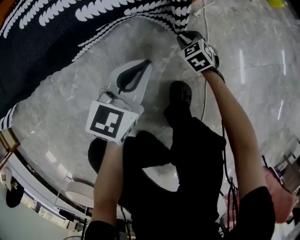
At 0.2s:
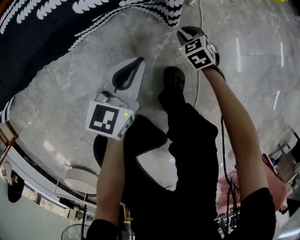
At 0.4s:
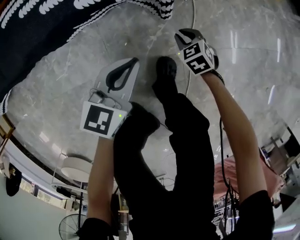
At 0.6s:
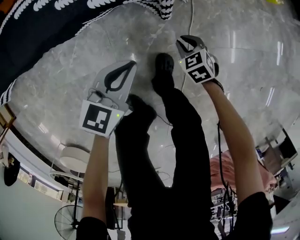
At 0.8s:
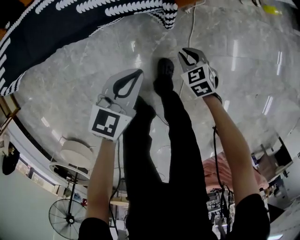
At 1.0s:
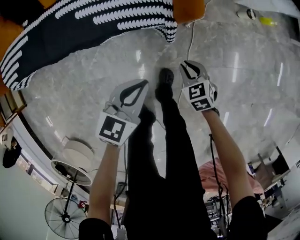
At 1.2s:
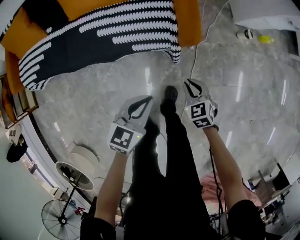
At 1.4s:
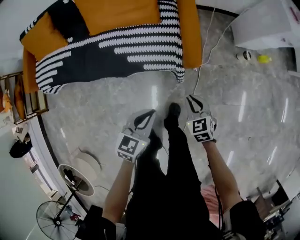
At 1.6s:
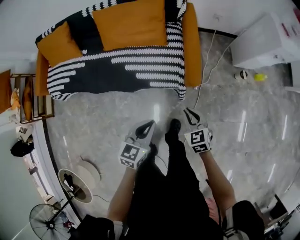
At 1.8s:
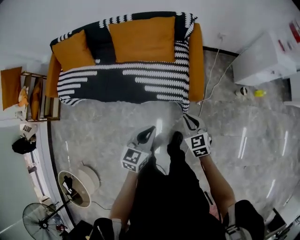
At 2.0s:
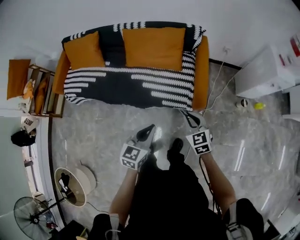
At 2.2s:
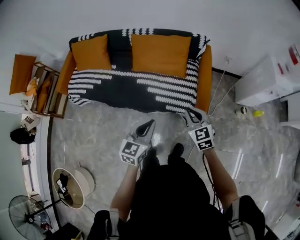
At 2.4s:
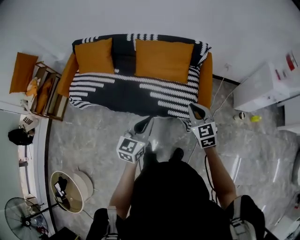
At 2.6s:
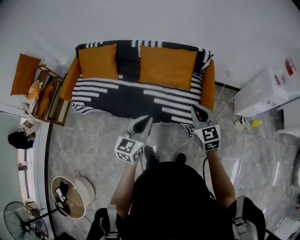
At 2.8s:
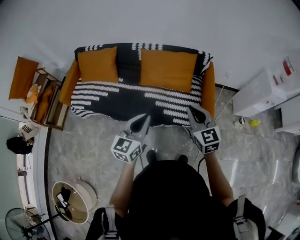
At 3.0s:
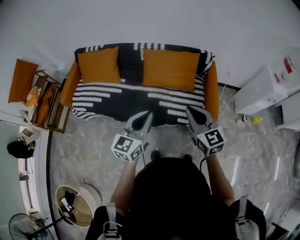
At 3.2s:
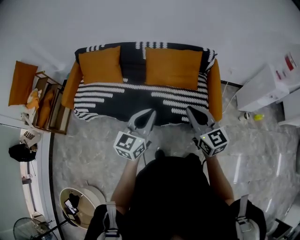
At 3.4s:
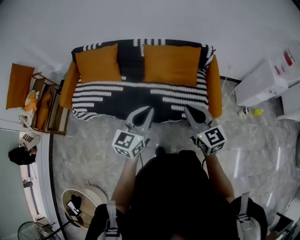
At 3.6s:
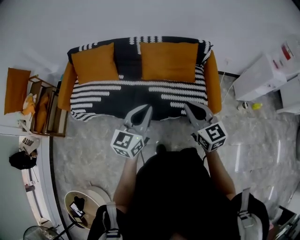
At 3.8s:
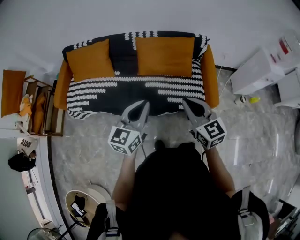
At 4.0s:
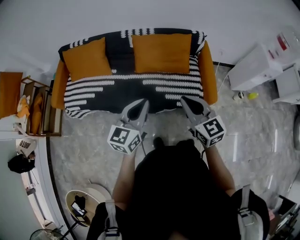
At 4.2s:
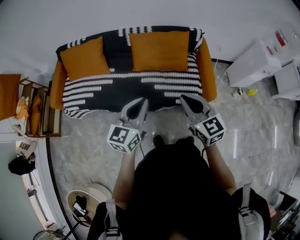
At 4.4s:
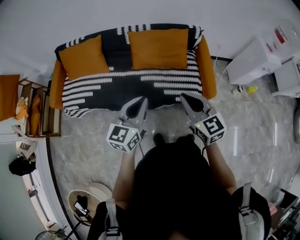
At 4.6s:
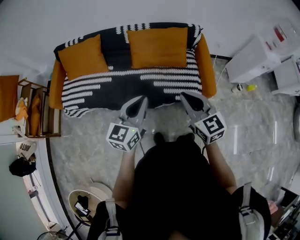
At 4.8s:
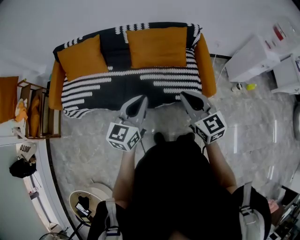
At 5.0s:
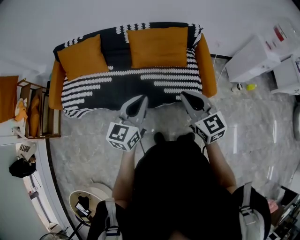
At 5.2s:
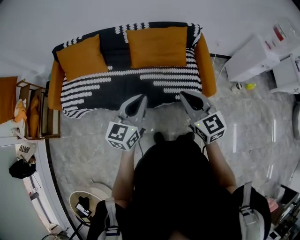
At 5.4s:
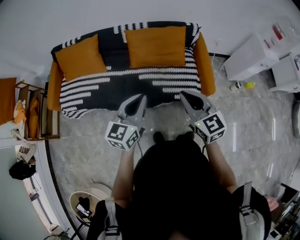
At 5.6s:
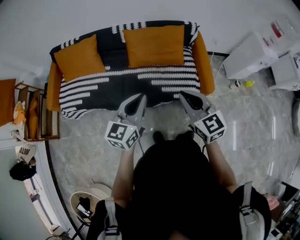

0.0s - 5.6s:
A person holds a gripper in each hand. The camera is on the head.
0.0s - 1.4s: The two grippers go some 50 cm upward.
1.4s - 2.8s: The grippers both shift upward and to the left by some 40 cm. The left gripper changes its angle by roughly 30 degrees. The right gripper swivels roughly 30 degrees.
2.8s - 4.2s: The two grippers go roughly 10 cm to the left.
4.2s - 5.6s: Both grippers stay about where they are.

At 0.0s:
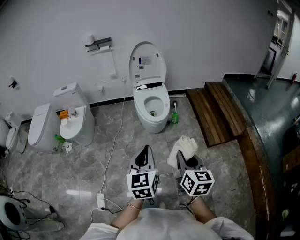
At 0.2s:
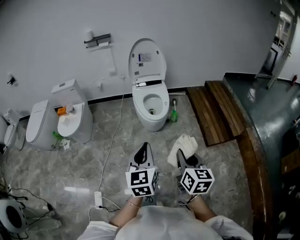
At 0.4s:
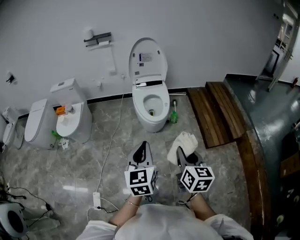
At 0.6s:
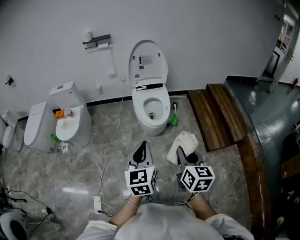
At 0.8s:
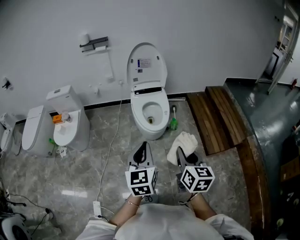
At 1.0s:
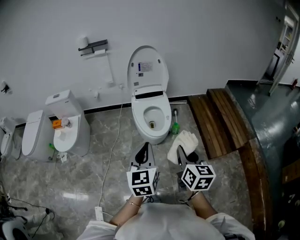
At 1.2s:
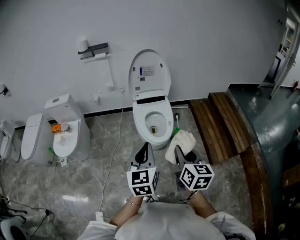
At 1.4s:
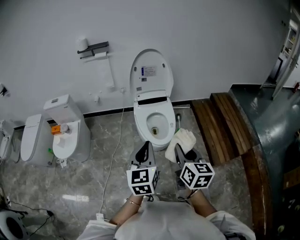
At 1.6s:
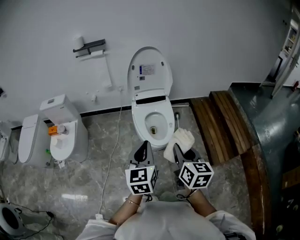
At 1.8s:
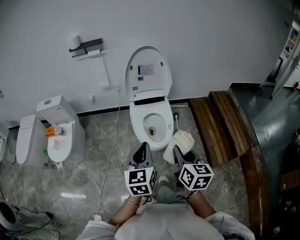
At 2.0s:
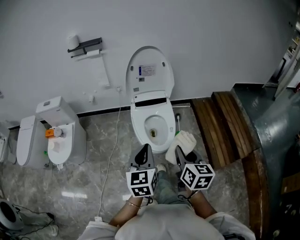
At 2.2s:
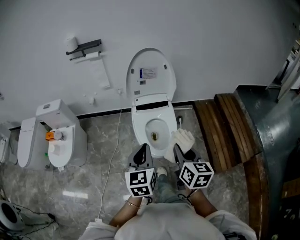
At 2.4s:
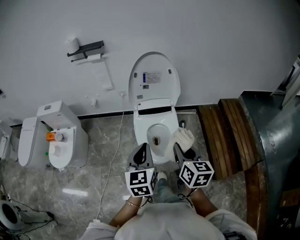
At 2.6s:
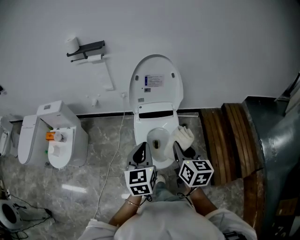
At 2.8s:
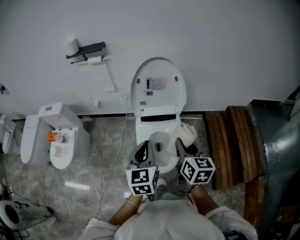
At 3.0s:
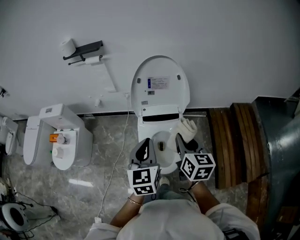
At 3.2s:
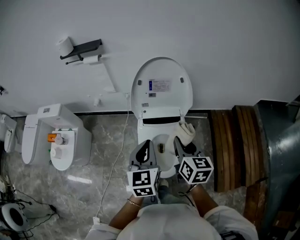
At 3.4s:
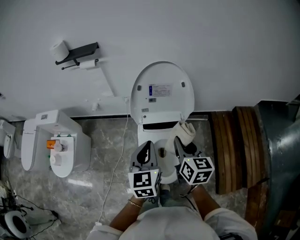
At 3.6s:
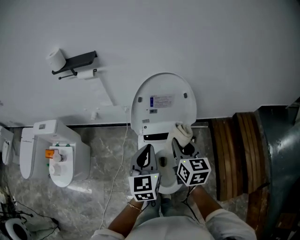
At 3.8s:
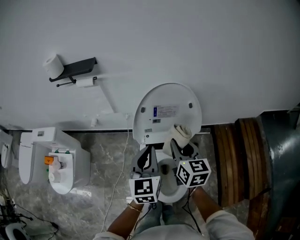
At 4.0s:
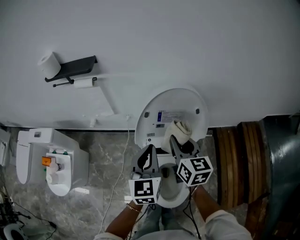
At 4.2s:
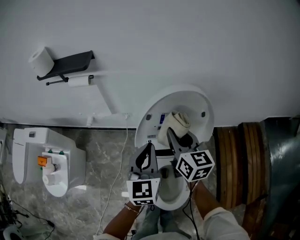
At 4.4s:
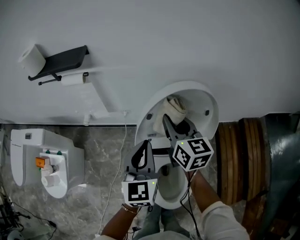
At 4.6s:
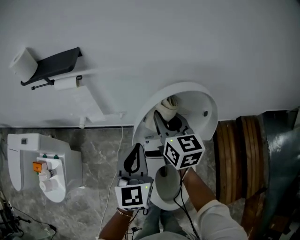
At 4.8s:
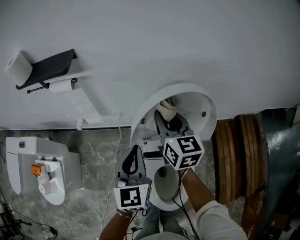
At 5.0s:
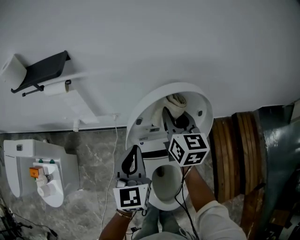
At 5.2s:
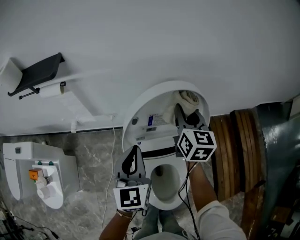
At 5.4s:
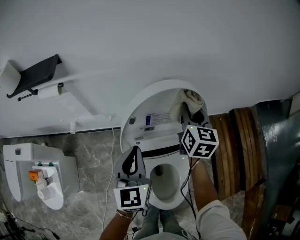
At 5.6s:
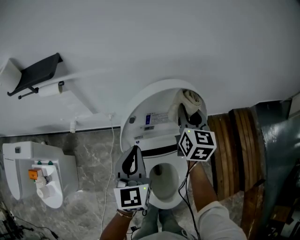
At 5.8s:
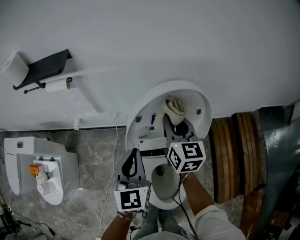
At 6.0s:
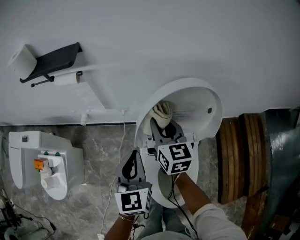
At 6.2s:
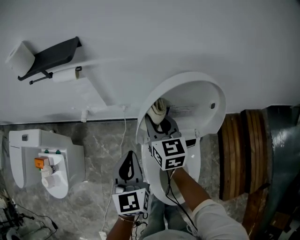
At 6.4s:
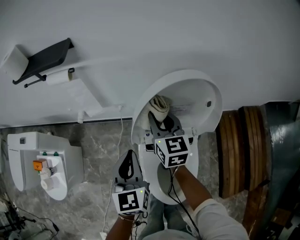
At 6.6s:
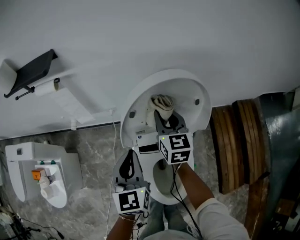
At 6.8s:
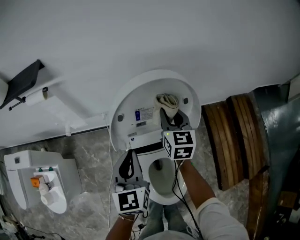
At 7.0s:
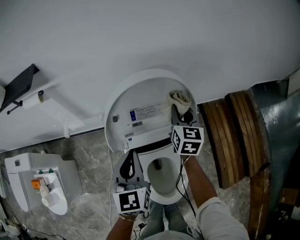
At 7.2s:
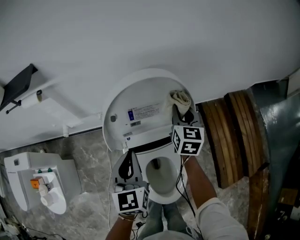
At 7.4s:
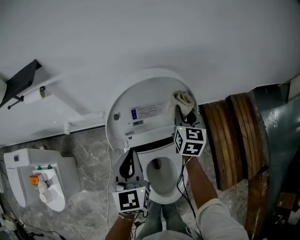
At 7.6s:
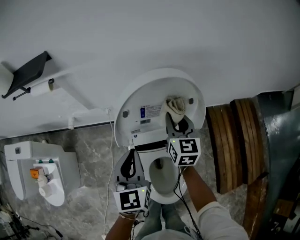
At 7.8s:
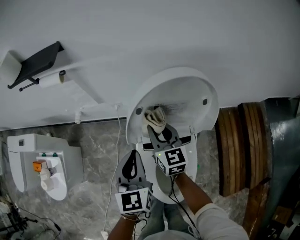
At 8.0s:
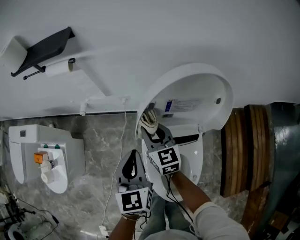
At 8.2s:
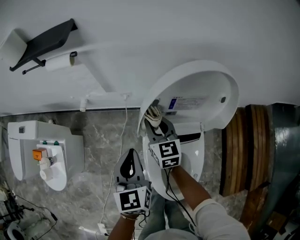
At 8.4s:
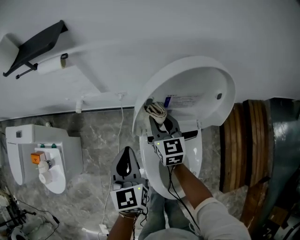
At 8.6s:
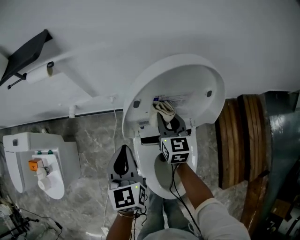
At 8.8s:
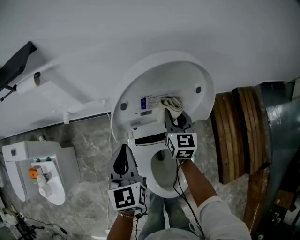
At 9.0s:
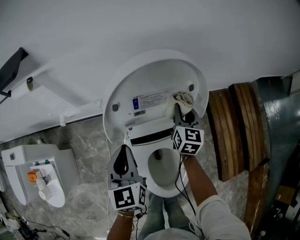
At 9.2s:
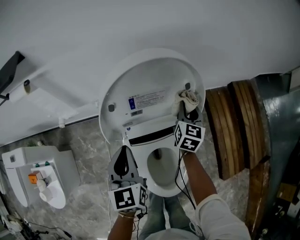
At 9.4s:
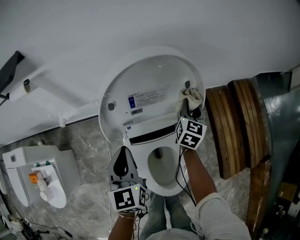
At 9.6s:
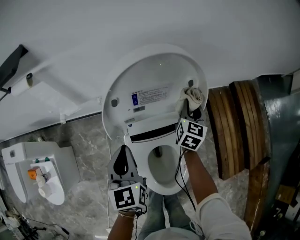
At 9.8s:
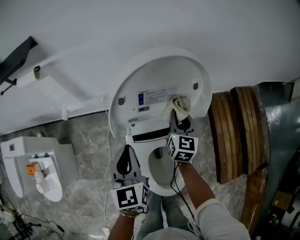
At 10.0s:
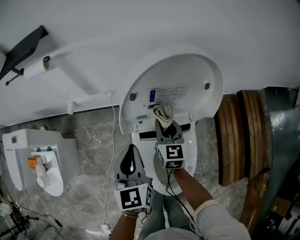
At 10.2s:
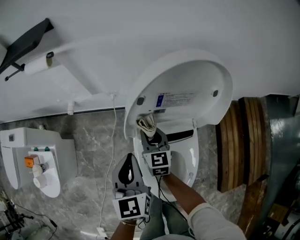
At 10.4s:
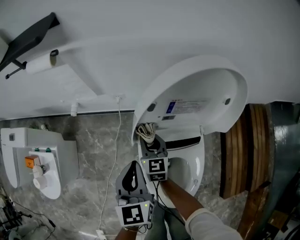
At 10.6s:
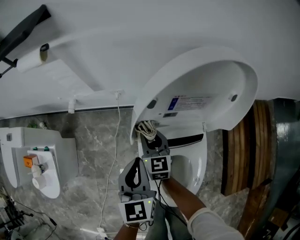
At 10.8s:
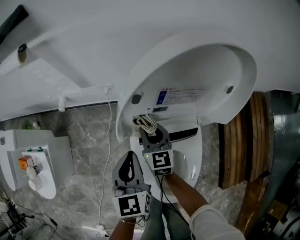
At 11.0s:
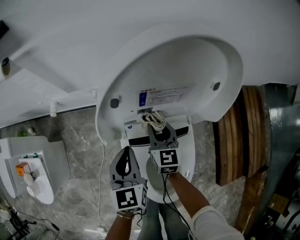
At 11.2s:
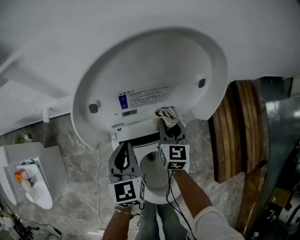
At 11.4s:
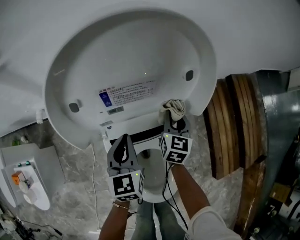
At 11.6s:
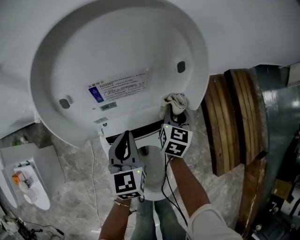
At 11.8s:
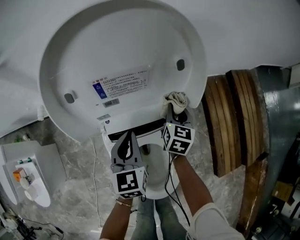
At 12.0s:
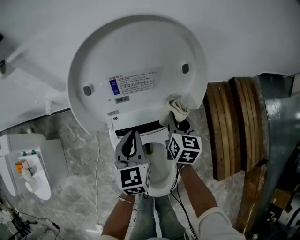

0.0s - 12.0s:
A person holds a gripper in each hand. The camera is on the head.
0.0s - 1.6s: The grippers both shift forward by some 30 cm.
1.6s - 3.0s: The two grippers go approximately 35 cm forward.
3.0s - 4.4s: Both grippers travel together forward, about 35 cm.
4.4s - 6.0s: The left gripper changes place by approximately 5 cm, while the right gripper moves some 15 cm to the right and comes back.
6.0s - 7.6s: The left gripper is displaced to the right by some 5 cm. The right gripper shifts approximately 15 cm to the right.
7.6s - 9.0s: The left gripper moves about 10 cm to the left and comes back; the right gripper heads downward, covering approximately 10 cm, and reaches roughly 20 cm to the left, then returns.
9.0s - 10.4s: The left gripper heads to the left, covering some 5 cm. Meanwhile the right gripper goes some 25 cm to the left, and turns by some 30 degrees.
10.4s - 12.0s: The right gripper ends up some 30 cm from where it was, and turns by roughly 30 degrees. Meanwhile the left gripper shifts by approximately 20 cm.

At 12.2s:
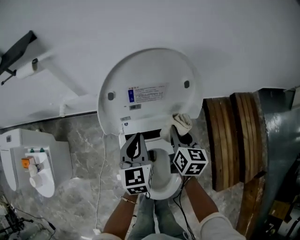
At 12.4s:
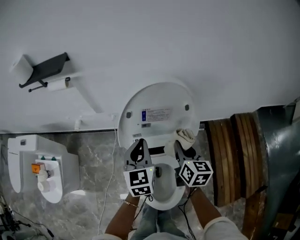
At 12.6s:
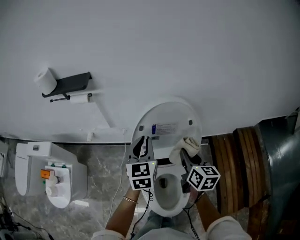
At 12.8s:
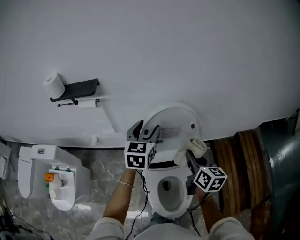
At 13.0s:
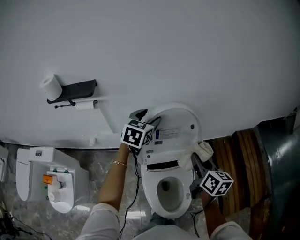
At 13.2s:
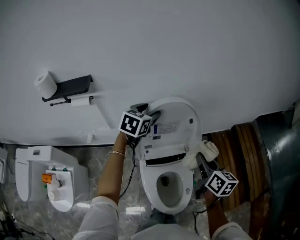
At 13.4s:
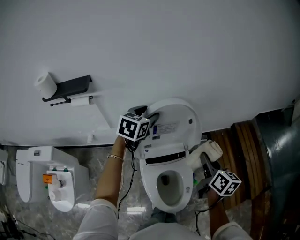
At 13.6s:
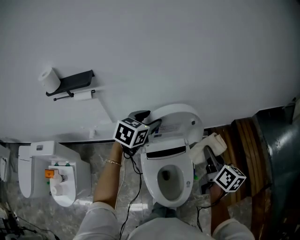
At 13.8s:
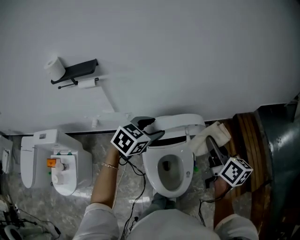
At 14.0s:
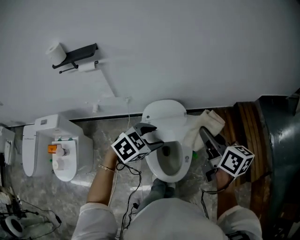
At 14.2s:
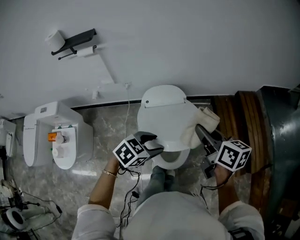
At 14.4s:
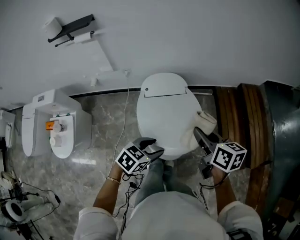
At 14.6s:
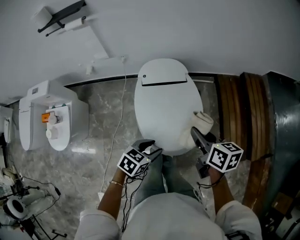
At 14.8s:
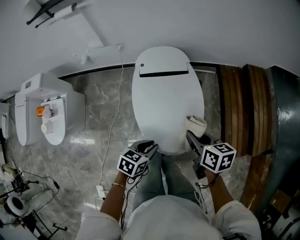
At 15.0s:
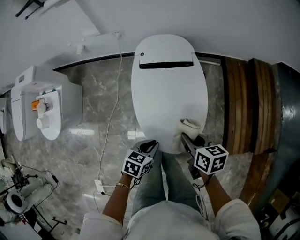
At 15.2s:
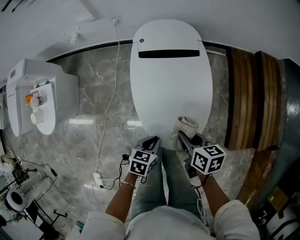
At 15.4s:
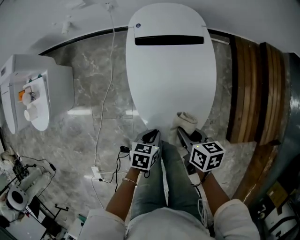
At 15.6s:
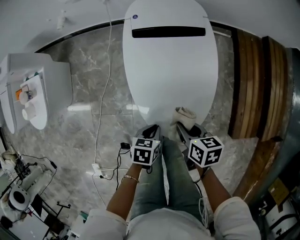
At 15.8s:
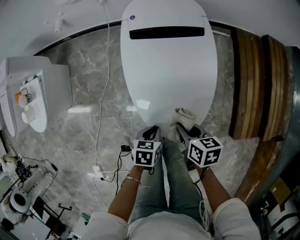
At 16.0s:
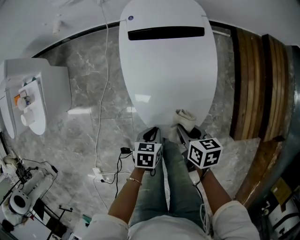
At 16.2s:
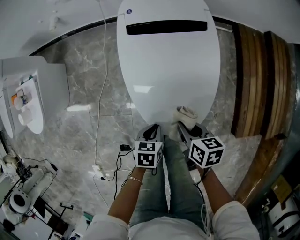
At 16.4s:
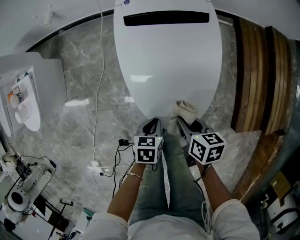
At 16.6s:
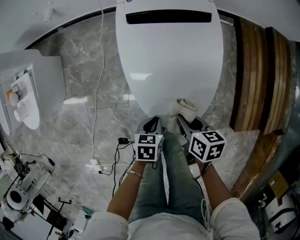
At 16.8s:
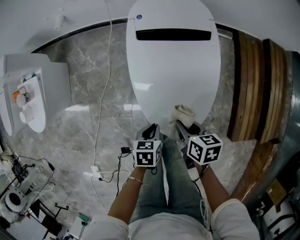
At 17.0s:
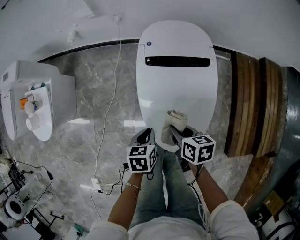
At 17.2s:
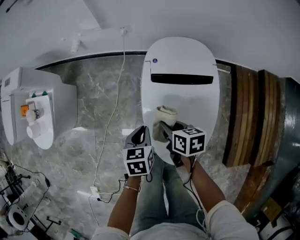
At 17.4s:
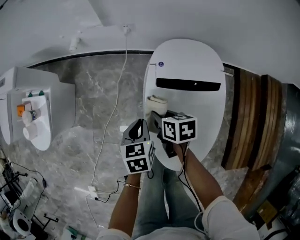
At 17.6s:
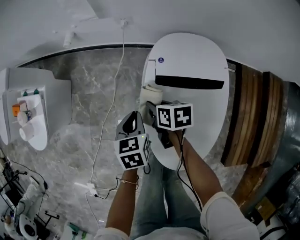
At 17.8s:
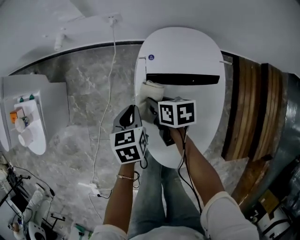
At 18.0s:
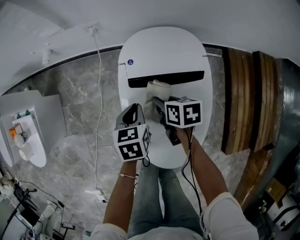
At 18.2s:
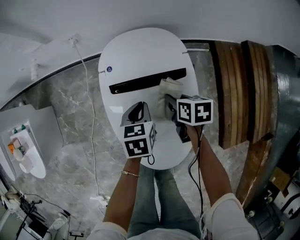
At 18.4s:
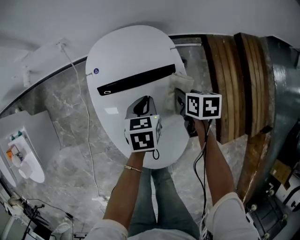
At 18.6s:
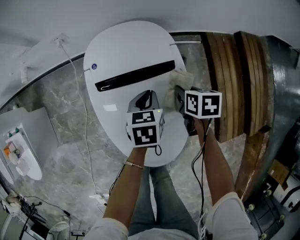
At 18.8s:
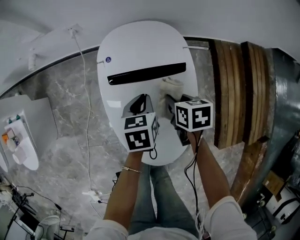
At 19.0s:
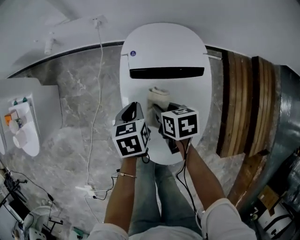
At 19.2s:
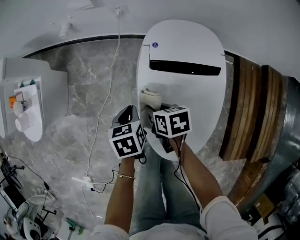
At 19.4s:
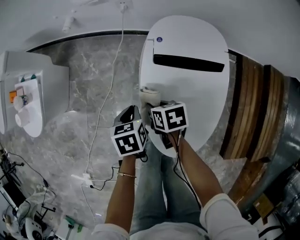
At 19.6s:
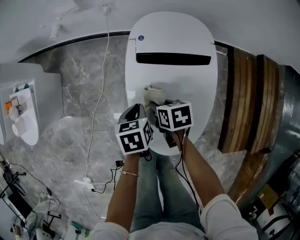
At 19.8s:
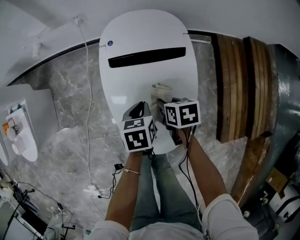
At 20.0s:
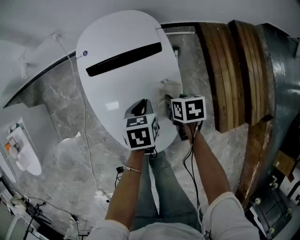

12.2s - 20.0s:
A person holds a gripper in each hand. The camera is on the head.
12.2s - 13.8s: The left gripper shifts some 20 cm upward, changes its angle by roughly 50 degrees, and opens, while the right gripper heads upward and backward, covering roughly 30 cm, and changes its angle by some 20 degrees.
13.8s - 15.4s: The grippers both shift downward and backward by roughly 50 cm. The left gripper rotates around the line of its fingers by some 40 degrees, counterclockwise from behind, and closes its fingers; the right gripper angles its fingers downward, by roughly 40 degrees.
15.4s - 16.8s: The right gripper ends up approximately 5 cm from where it was.
16.8s - 18.4s: The right gripper moves some 30 cm. The left gripper shifts by approximately 30 cm.
